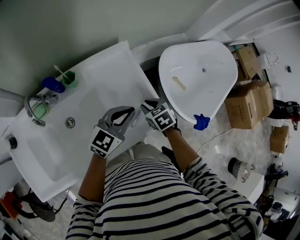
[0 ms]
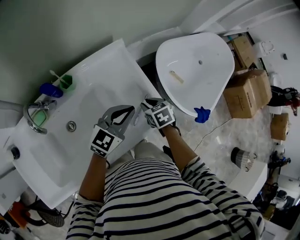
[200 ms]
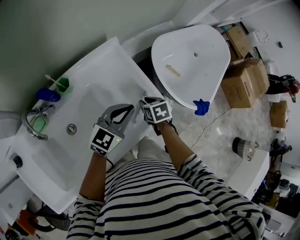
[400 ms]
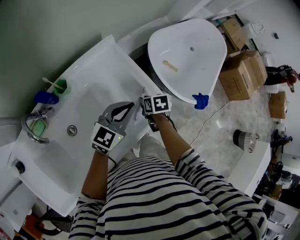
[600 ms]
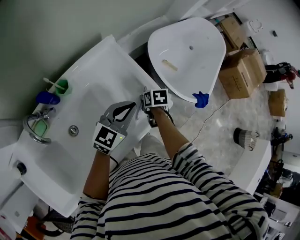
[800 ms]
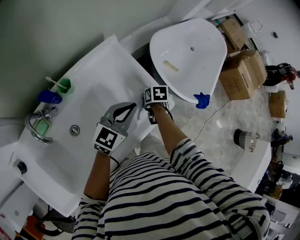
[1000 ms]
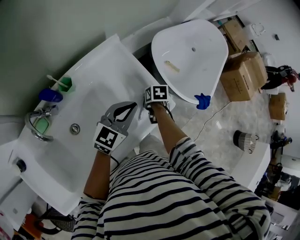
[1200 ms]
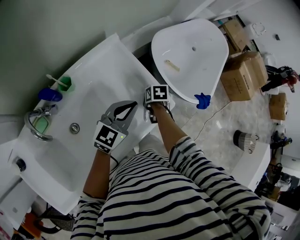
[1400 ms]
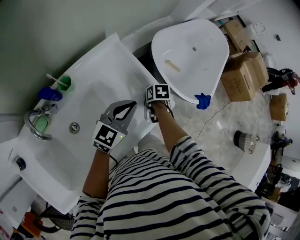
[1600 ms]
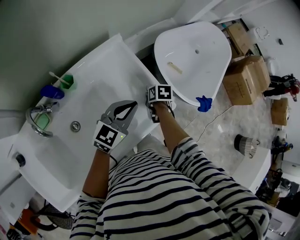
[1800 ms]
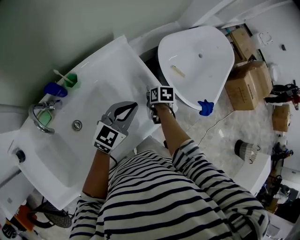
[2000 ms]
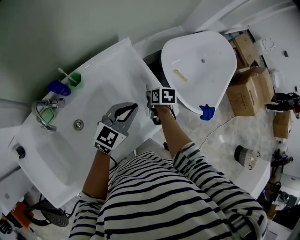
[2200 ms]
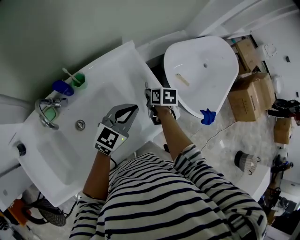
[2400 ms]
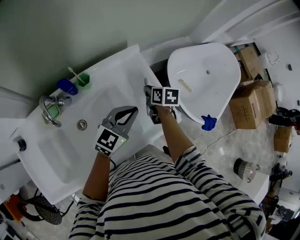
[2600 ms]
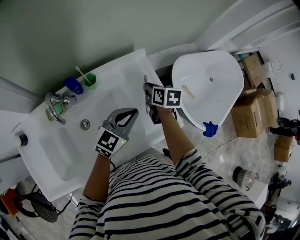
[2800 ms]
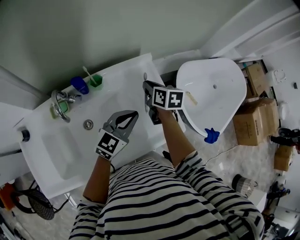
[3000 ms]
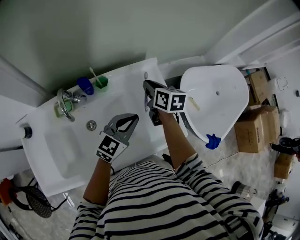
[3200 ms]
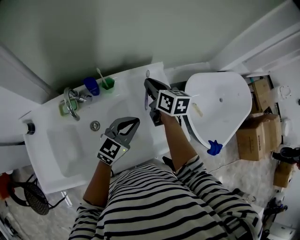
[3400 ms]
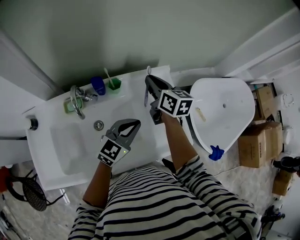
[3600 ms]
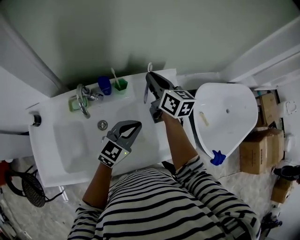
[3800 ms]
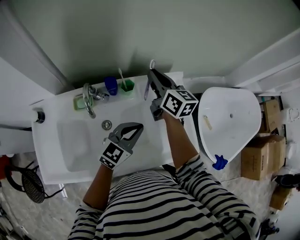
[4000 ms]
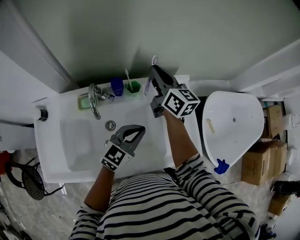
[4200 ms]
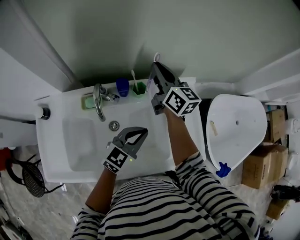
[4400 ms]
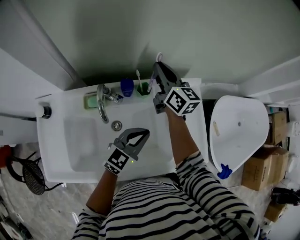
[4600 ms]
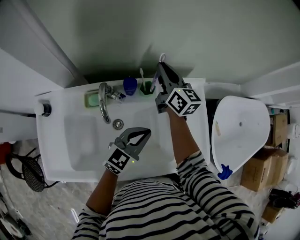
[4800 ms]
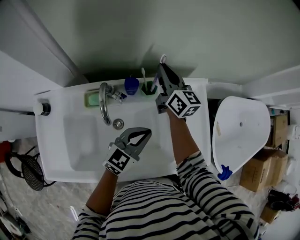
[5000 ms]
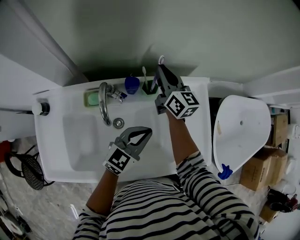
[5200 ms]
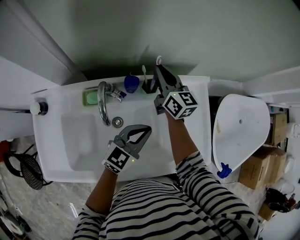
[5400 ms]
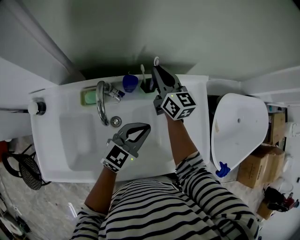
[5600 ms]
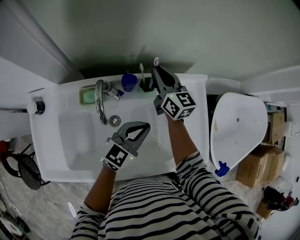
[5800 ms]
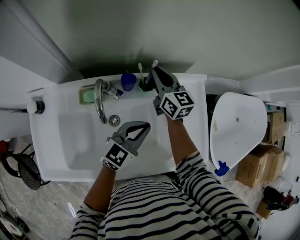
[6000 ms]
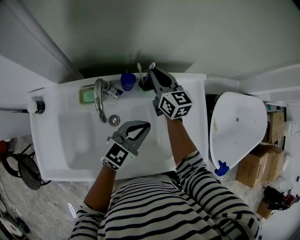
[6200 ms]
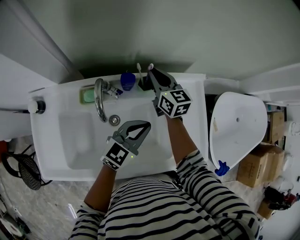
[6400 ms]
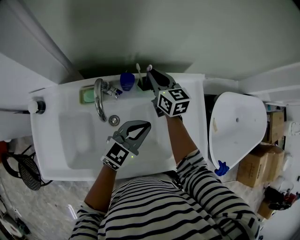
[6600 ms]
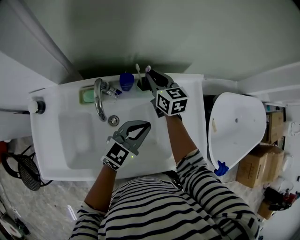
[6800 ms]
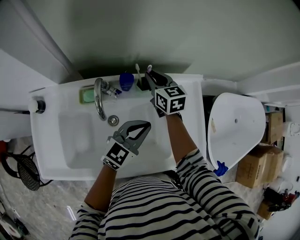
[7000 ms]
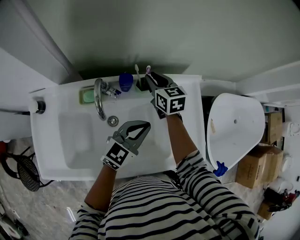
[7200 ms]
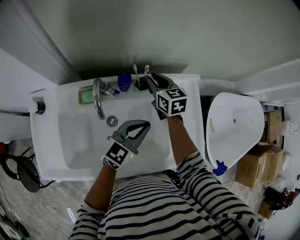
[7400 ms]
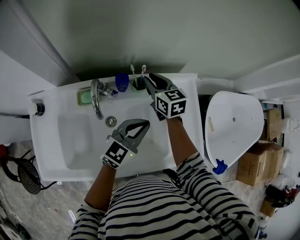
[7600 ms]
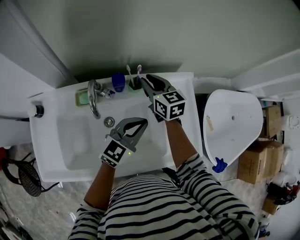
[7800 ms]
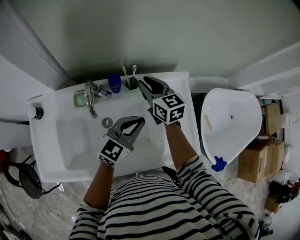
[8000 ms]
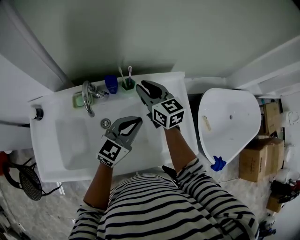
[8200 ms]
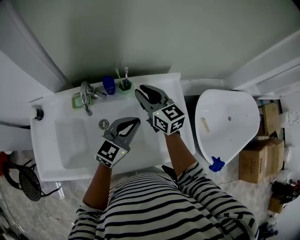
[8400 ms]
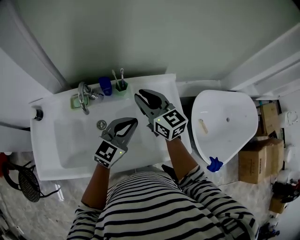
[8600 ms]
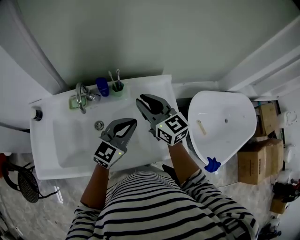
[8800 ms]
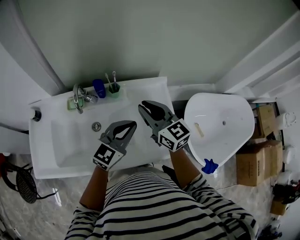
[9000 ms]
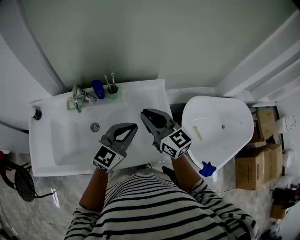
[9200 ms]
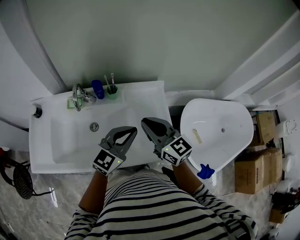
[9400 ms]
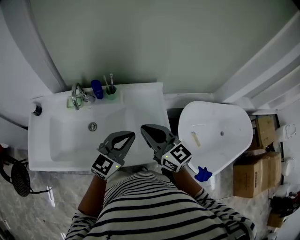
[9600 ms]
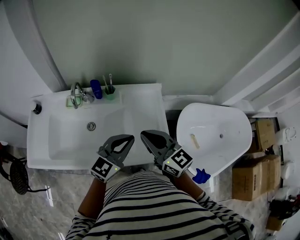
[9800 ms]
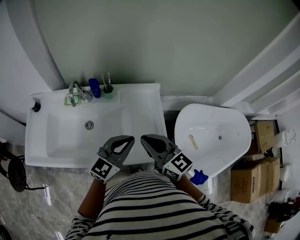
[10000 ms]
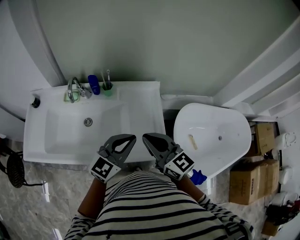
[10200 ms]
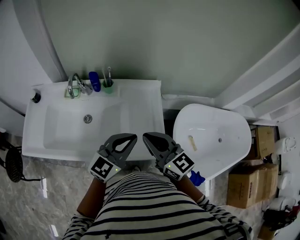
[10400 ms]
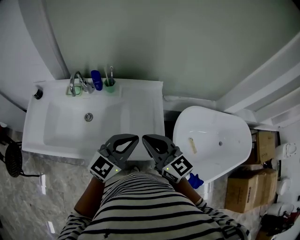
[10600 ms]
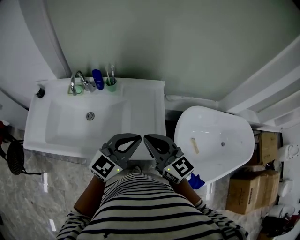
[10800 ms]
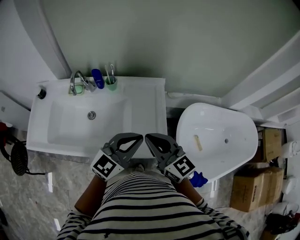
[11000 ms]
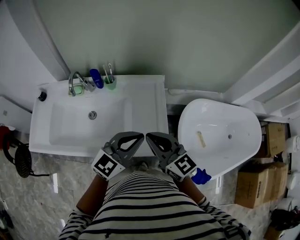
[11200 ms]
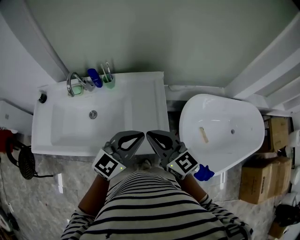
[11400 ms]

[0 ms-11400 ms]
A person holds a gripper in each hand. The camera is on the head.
0 ms to 1400 ms: The right gripper shifts about 10 cm downward, and rotates around the line of its fingers by roughly 50 degrees, clockwise from behind.
1400 ms to 2800 ms: The left gripper ends up roughly 5 cm from where it was. Meanwhile the right gripper goes some 20 cm upward, to the left and forward, and points its fingers some 30 degrees further upward.
2800 ms to 4200 ms: The right gripper moves to the left and upward, approximately 25 cm, and angles its fingers upward, by about 40 degrees; the left gripper heads to the left, covering roughly 10 cm.
4200 ms to 5600 ms: The right gripper heads downward and to the left, covering roughly 10 cm; the left gripper ends up about 5 cm from where it was.
5600 ms to 7200 ms: The right gripper turns by some 20 degrees.
7200 ms to 8600 ms: The right gripper heads backward, upward and to the right, covering some 20 cm, and swivels approximately 20 degrees, while the left gripper shifts roughly 5 cm upward.
8600 ms to 10000 ms: The left gripper is displaced backward and to the right by some 15 cm. Meanwhile the right gripper heads backward and to the right, covering roughly 25 cm.
10000 ms to 11400 ms: The two grippers go some 5 cm to the right.

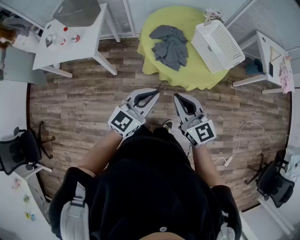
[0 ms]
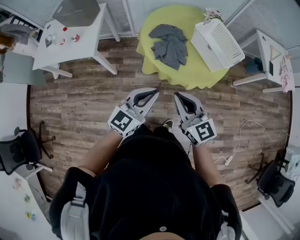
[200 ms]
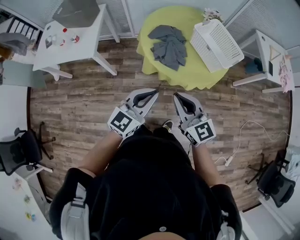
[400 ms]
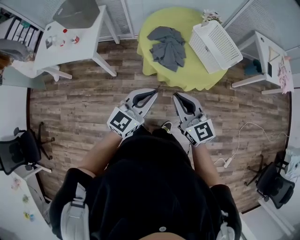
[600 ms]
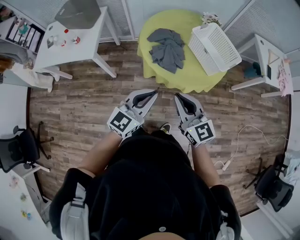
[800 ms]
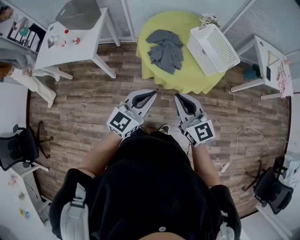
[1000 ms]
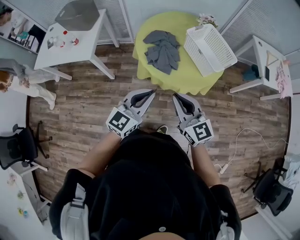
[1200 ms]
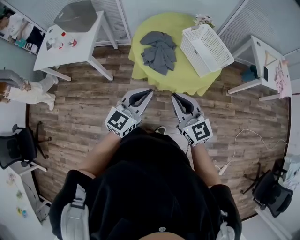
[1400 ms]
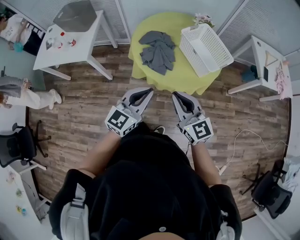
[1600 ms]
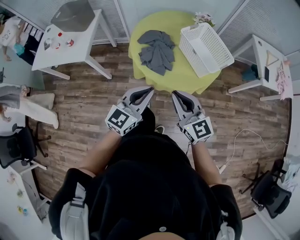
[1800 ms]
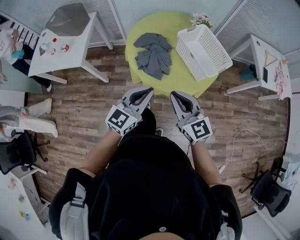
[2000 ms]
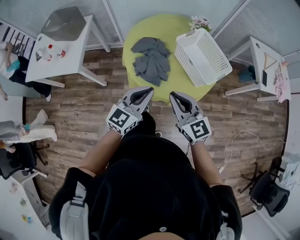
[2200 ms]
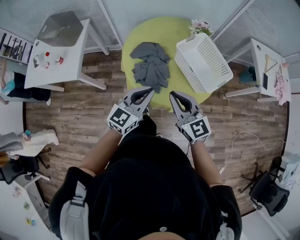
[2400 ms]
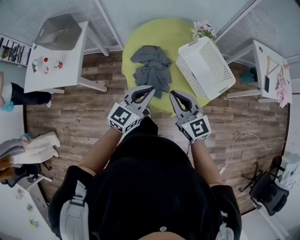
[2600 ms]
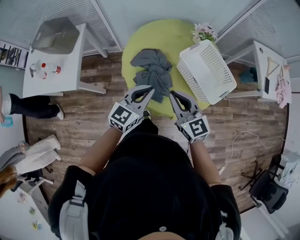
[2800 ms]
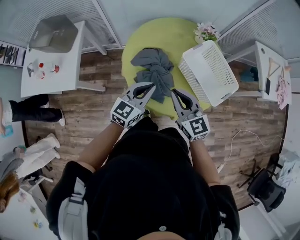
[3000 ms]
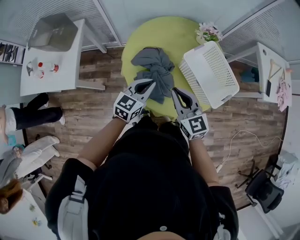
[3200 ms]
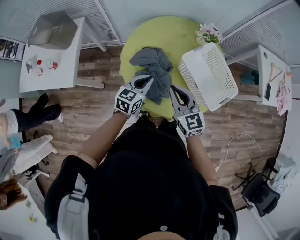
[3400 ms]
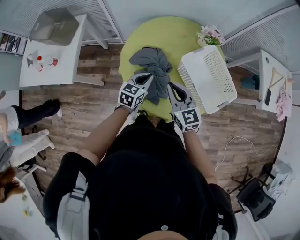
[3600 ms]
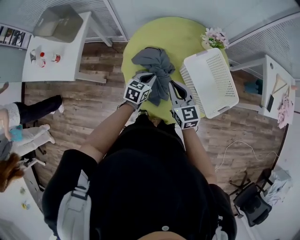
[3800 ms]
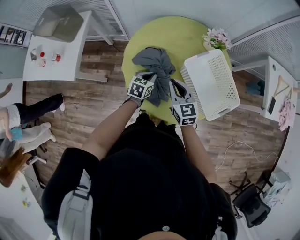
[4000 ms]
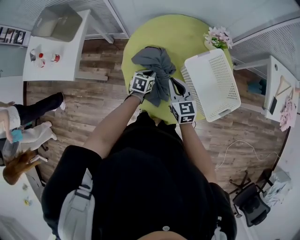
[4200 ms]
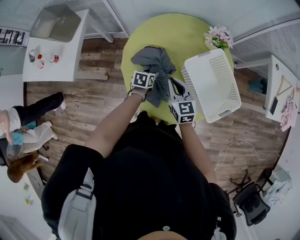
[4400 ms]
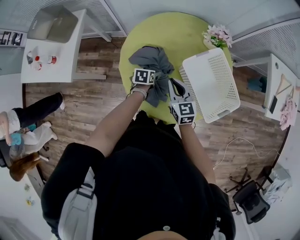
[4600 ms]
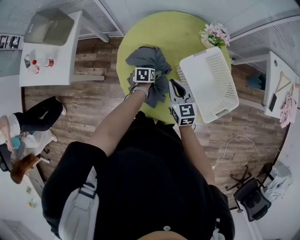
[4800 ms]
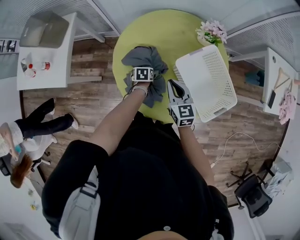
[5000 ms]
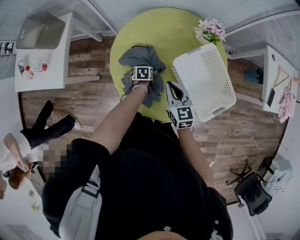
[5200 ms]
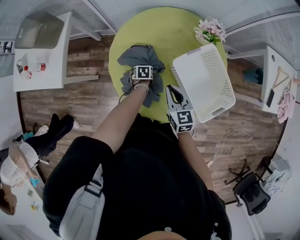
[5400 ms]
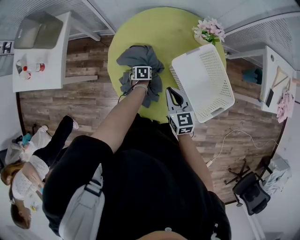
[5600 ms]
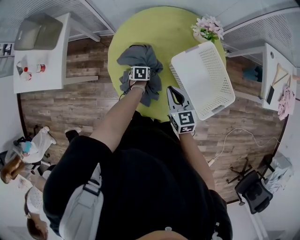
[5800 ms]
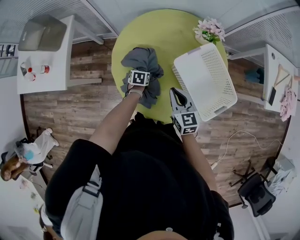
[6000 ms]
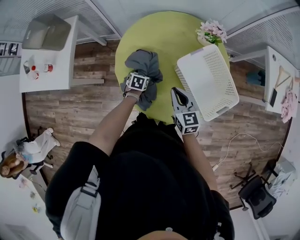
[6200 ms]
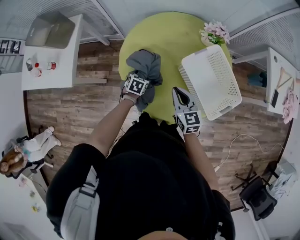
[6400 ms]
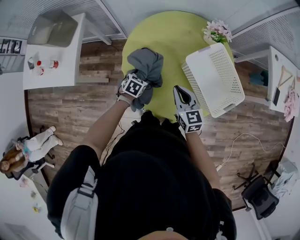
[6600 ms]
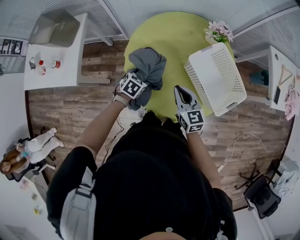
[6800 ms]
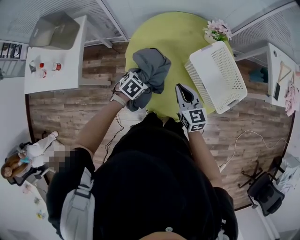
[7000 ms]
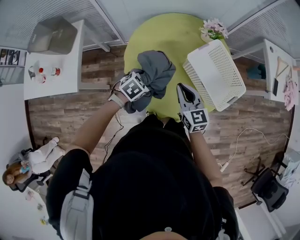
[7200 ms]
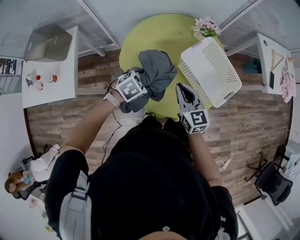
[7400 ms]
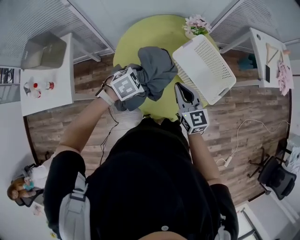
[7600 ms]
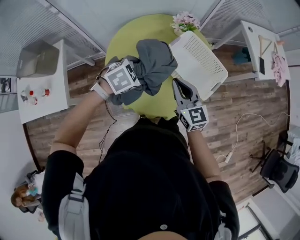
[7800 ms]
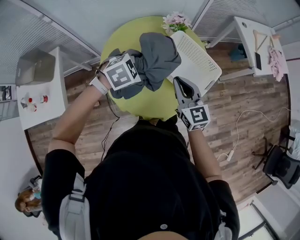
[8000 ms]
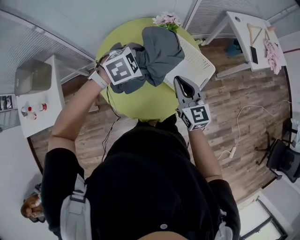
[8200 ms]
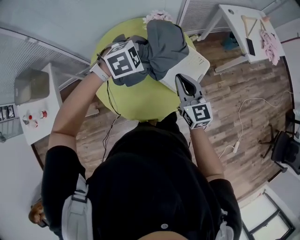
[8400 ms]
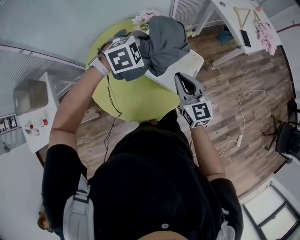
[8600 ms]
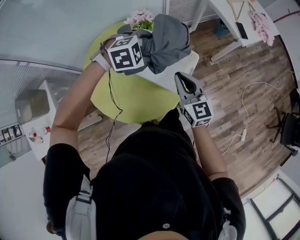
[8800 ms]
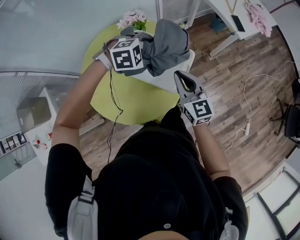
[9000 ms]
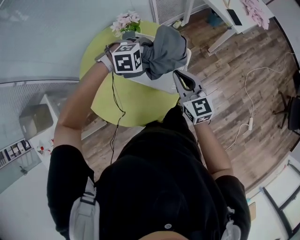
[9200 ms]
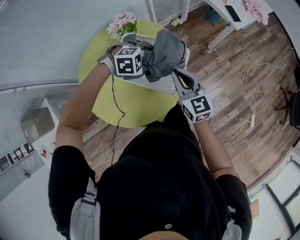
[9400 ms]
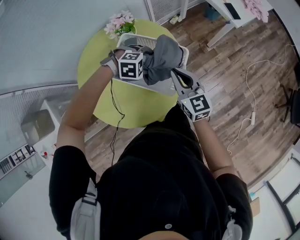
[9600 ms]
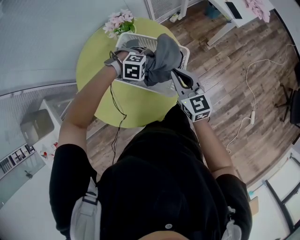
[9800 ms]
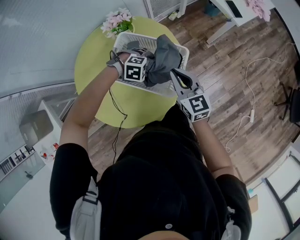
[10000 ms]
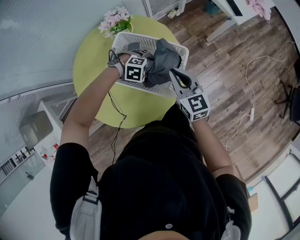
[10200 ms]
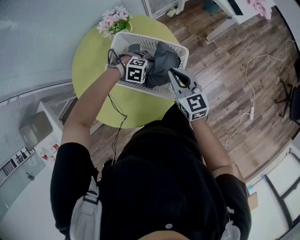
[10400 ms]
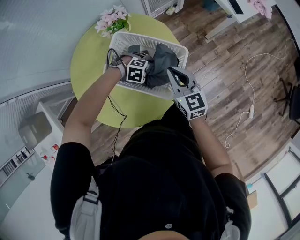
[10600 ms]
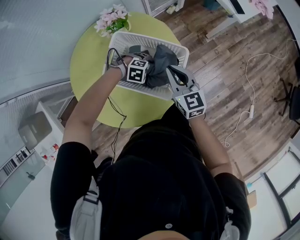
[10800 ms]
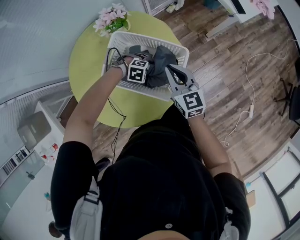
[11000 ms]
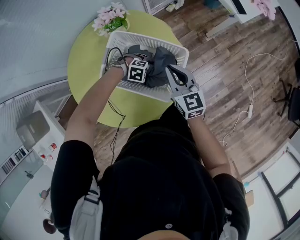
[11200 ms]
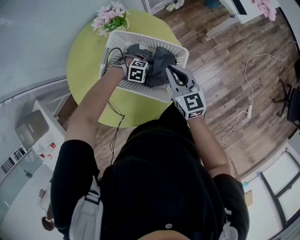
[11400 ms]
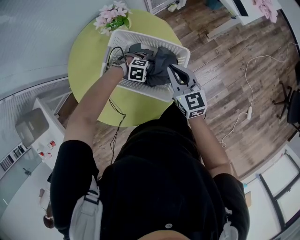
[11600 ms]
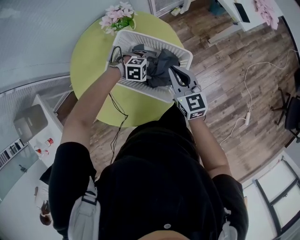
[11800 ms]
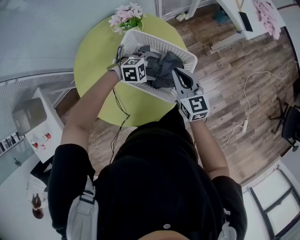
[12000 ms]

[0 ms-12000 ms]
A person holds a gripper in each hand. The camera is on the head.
0 ms to 1600 ms: Both grippers travel together to the right, some 10 cm.
1600 ms to 3000 ms: Both grippers move forward, roughly 30 cm.
3000 ms to 4400 ms: The left gripper shifts roughly 30 cm downward and forward, angles its fingers downward, by some 40 degrees, and opens up; the right gripper travels downward and forward by roughly 20 cm.
4400 ms to 6000 ms: The right gripper shifts roughly 5 cm to the right; the left gripper shifts about 5 cm downward.
6000 ms to 7600 ms: The right gripper moves upward, roughly 10 cm. The left gripper is displaced upward by about 25 cm, and rotates around the line of its fingers by approximately 60 degrees, clockwise from behind.
7600 ms to 9000 ms: The grippers both shift to the right and forward by some 30 cm. The right gripper turns by about 20 degrees; the left gripper twists approximately 50 degrees clockwise, seen from behind.
9000 ms to 10400 ms: The left gripper is displaced downward by roughly 20 cm, and turns by about 30 degrees; the right gripper is displaced downward by approximately 10 cm.
10400 ms to 12000 ms: The left gripper goes about 5 cm upward, and swivels approximately 20 degrees.
